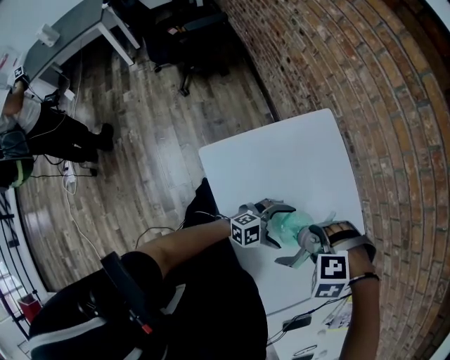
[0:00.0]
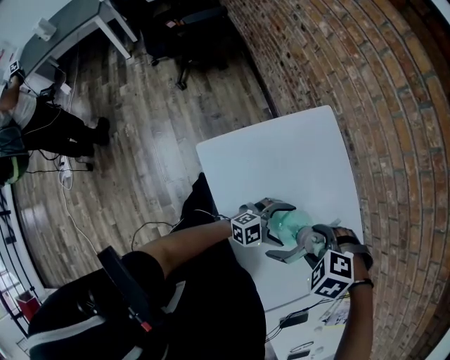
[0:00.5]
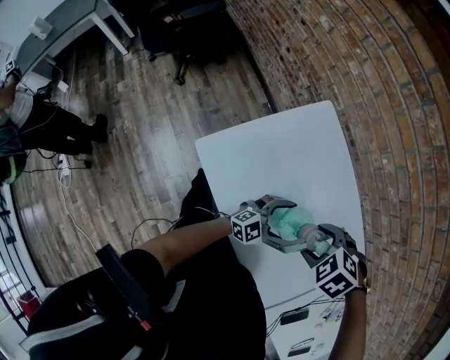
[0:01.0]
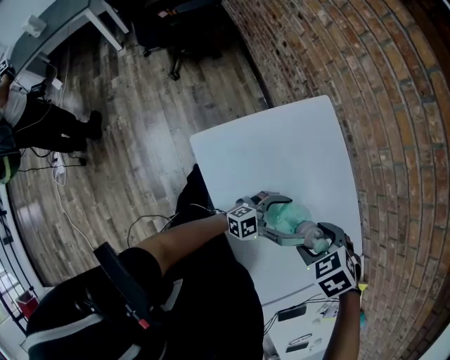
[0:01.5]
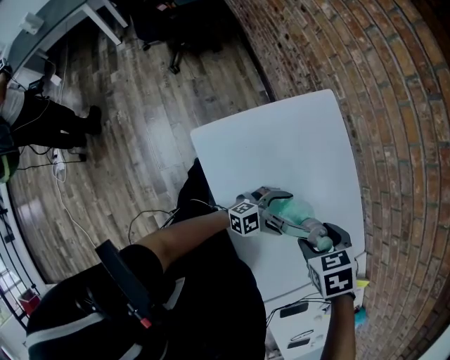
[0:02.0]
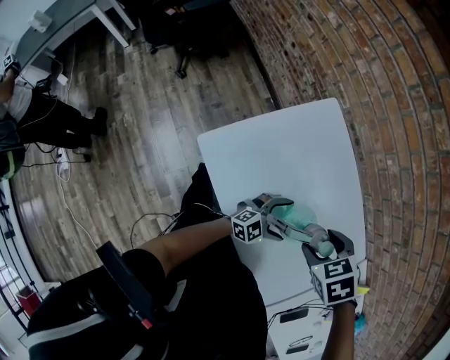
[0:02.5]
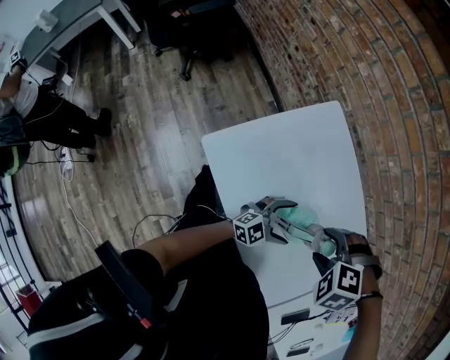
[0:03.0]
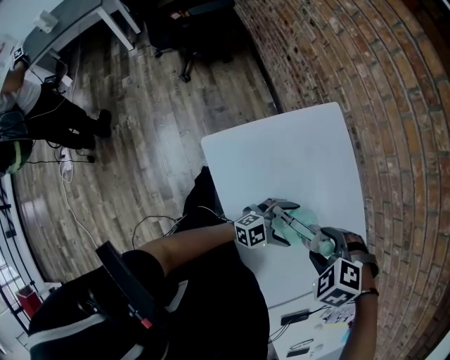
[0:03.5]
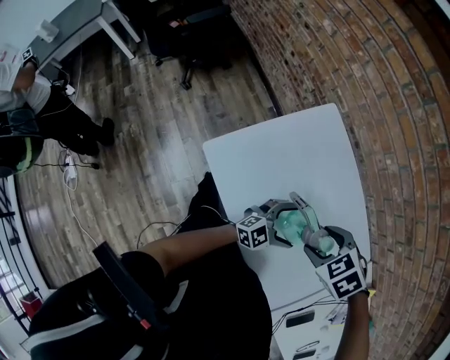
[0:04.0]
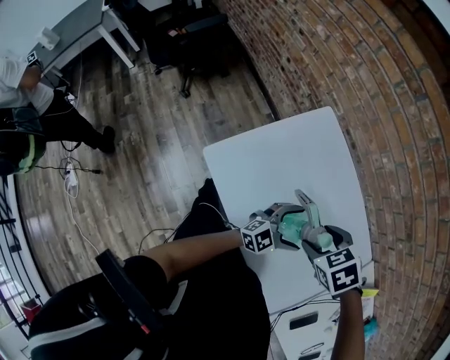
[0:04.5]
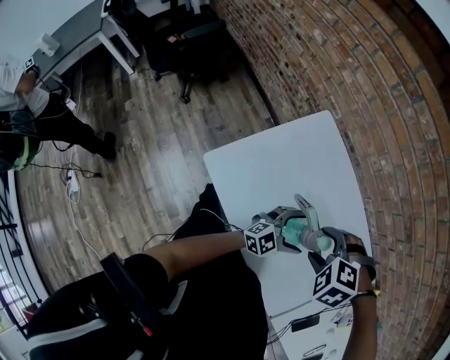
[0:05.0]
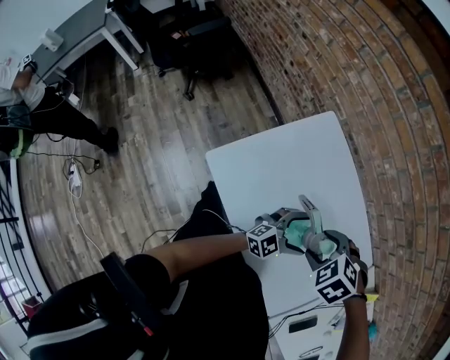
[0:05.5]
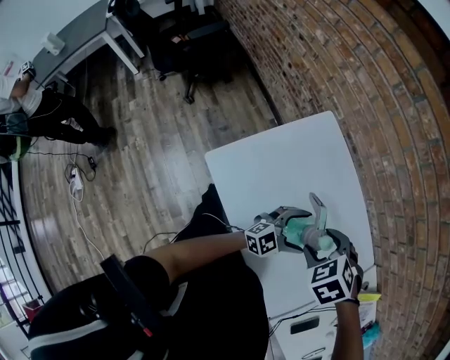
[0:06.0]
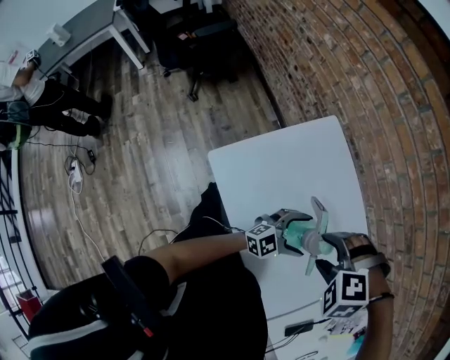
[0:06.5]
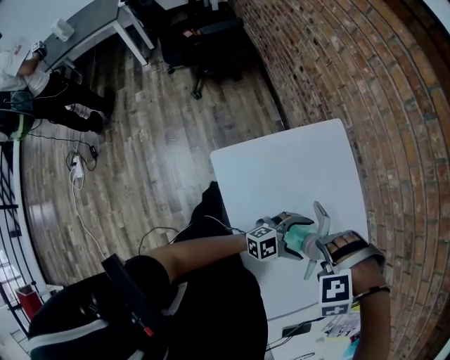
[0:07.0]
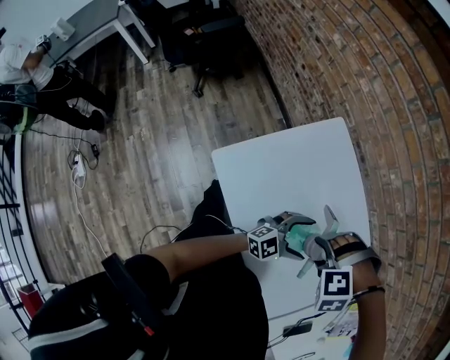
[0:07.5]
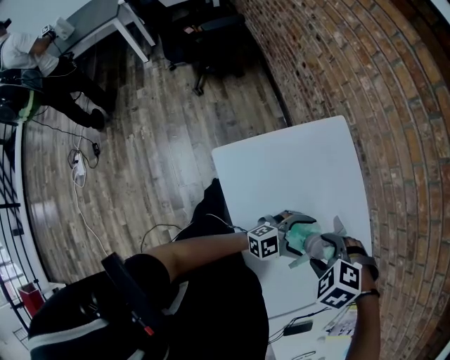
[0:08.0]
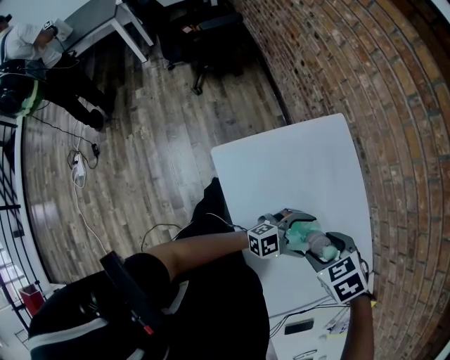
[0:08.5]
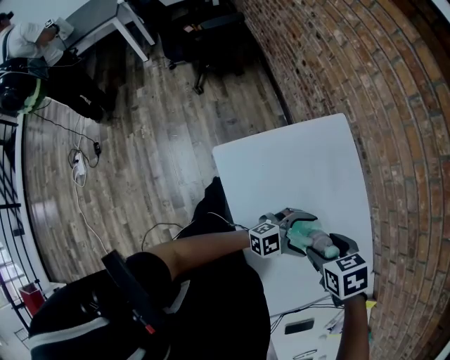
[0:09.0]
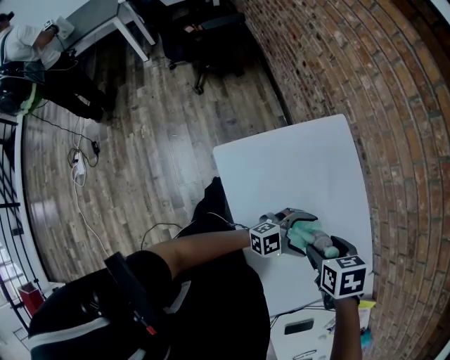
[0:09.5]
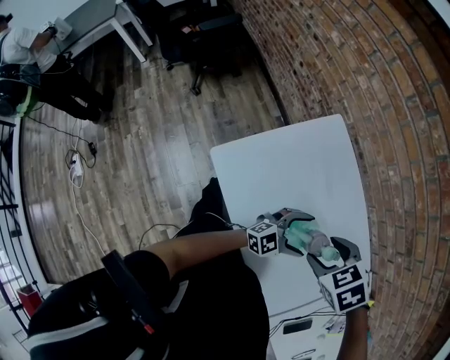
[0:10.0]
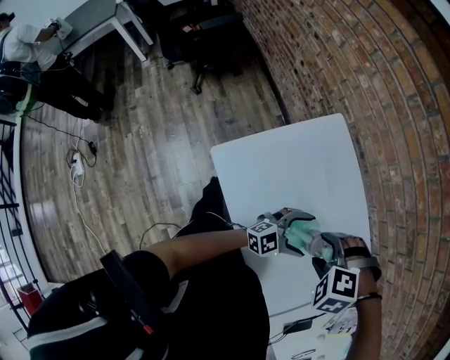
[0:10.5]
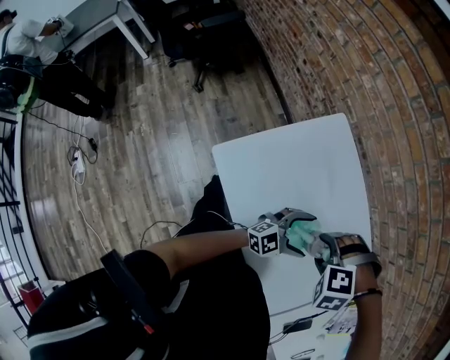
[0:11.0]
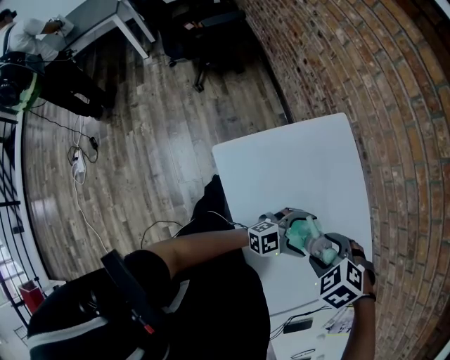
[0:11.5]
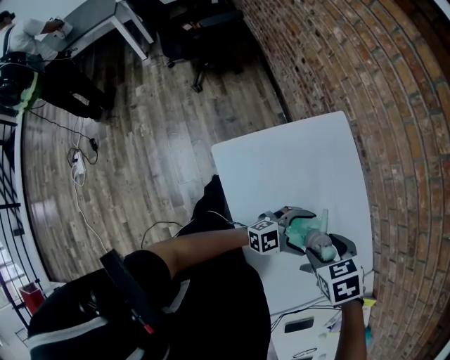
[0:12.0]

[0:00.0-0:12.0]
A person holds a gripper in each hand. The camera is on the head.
0:00.0 to 0:02.0: The right gripper twists approximately 70 degrees clockwise, seen from behind.
0:06.0 to 0:08.0: The right gripper turns by some 40 degrees.
0:08.0 to 0:10.0: The right gripper rotates approximately 40 degrees.

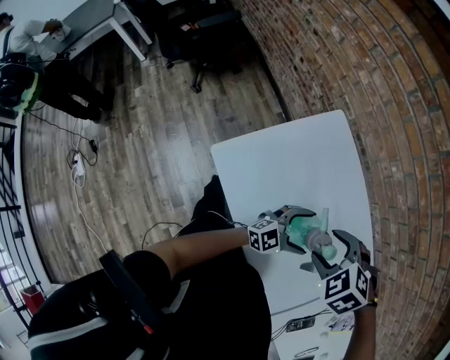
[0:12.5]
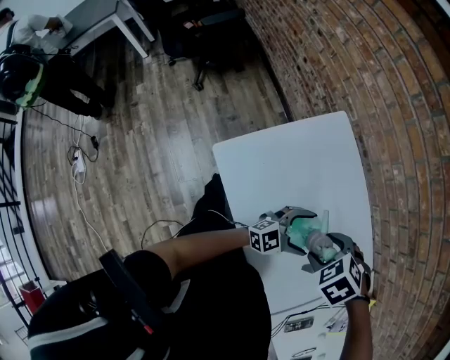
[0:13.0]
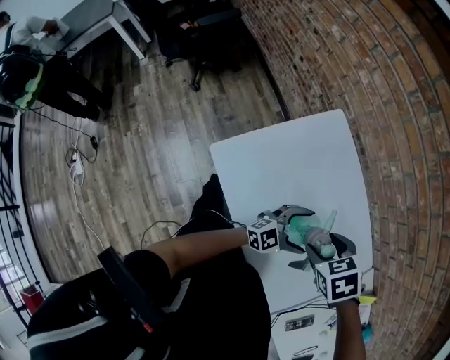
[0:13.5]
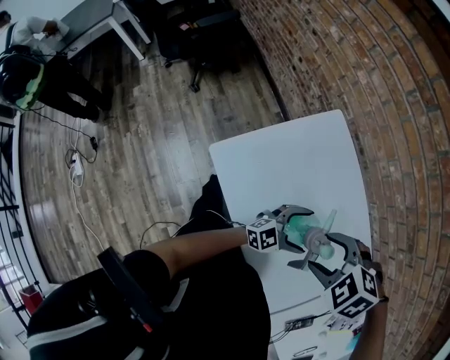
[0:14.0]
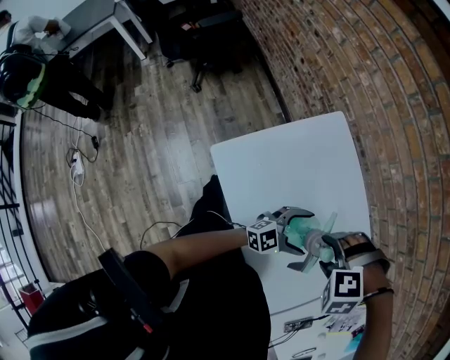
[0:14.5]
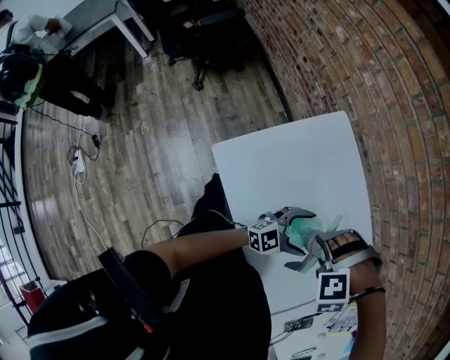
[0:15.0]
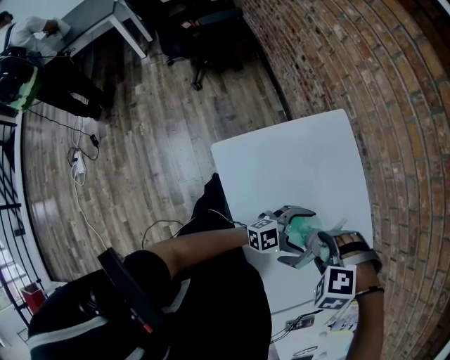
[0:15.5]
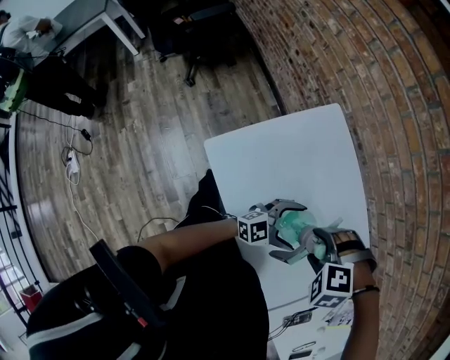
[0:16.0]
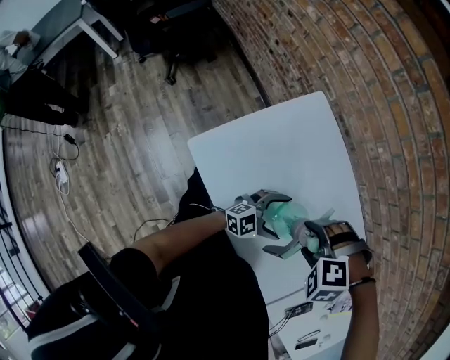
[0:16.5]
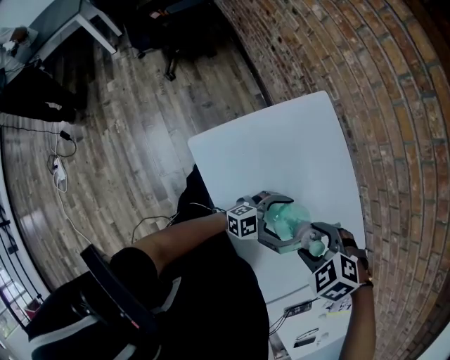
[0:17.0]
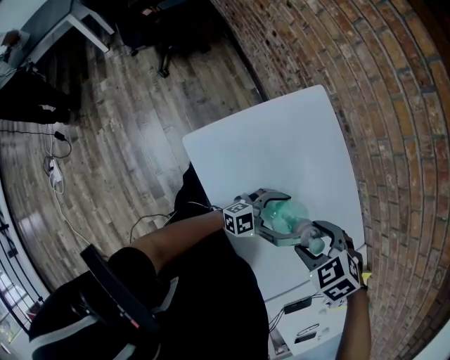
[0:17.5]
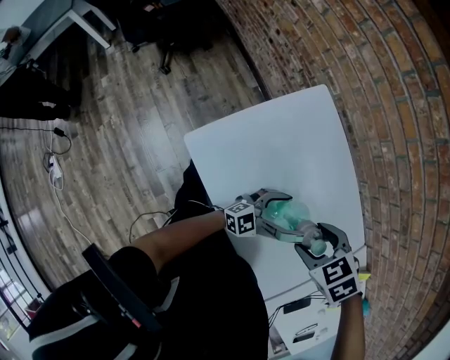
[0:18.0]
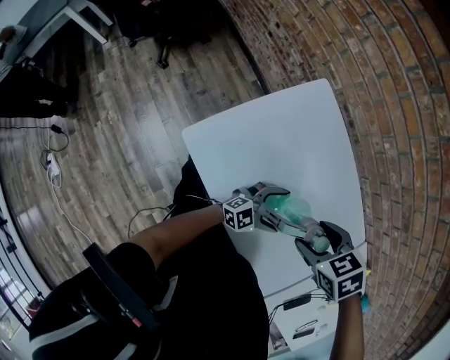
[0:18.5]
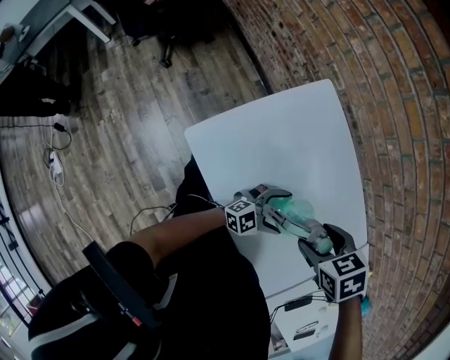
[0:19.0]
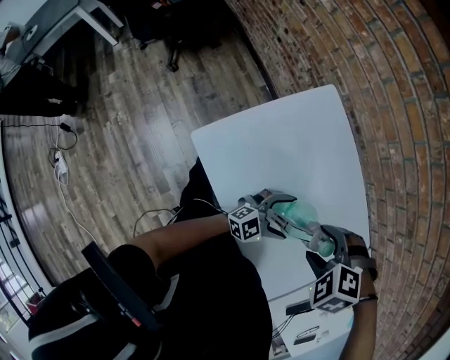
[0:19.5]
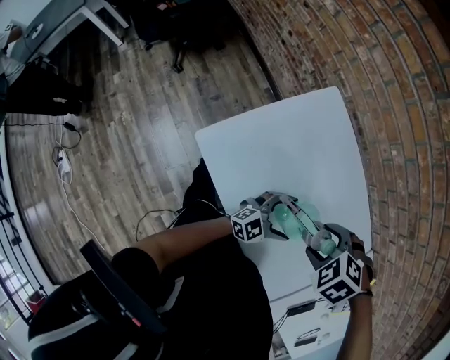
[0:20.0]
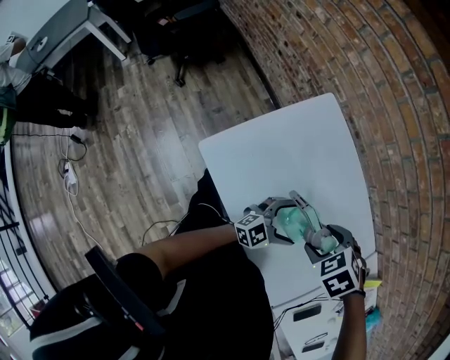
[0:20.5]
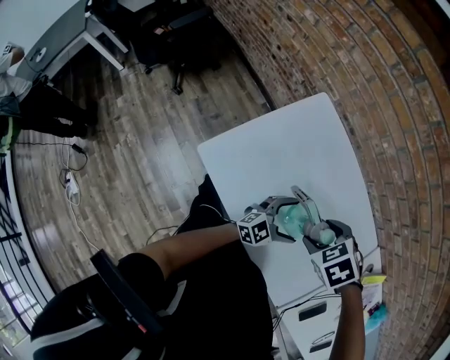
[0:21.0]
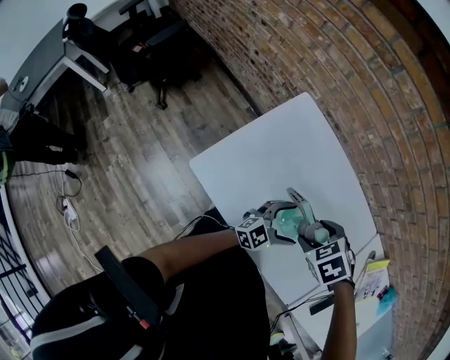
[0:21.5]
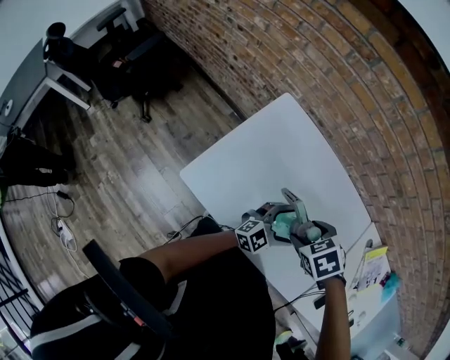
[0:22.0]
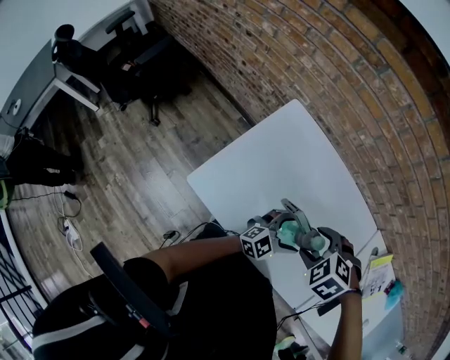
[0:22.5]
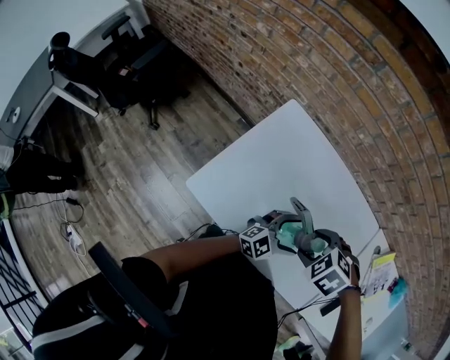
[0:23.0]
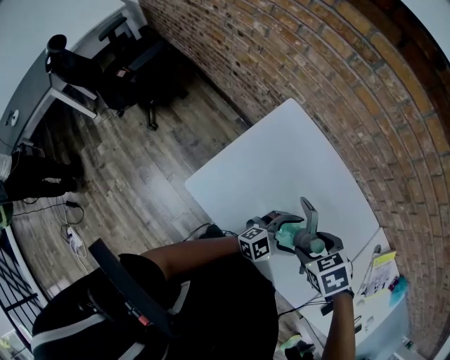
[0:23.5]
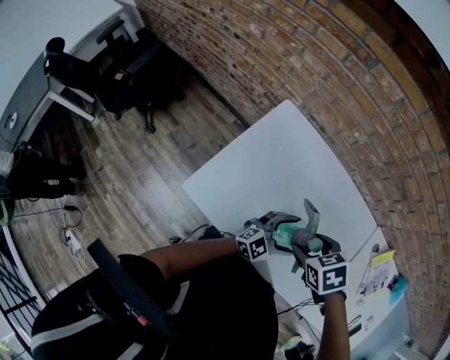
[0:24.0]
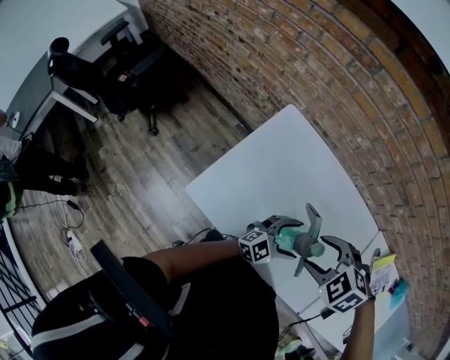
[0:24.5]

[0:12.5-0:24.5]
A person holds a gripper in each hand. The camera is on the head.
0:12.5 to 0:14.5: The right gripper rolls counterclockwise, seen from behind, by roughly 40 degrees.
0:14.5 to 0:16.5: The left gripper shifts roughly 5 cm downward.
0:16.5 to 0:18.5: The right gripper twists approximately 60 degrees clockwise, seen from behind.

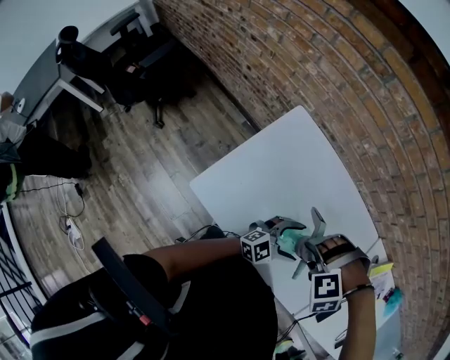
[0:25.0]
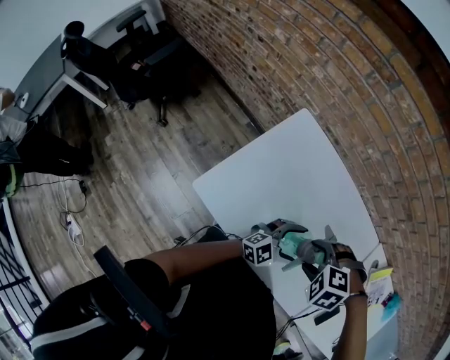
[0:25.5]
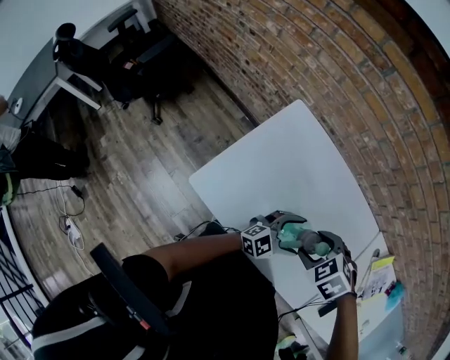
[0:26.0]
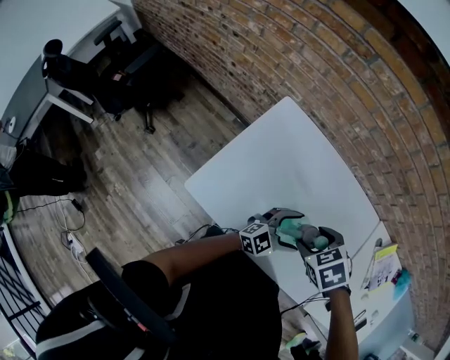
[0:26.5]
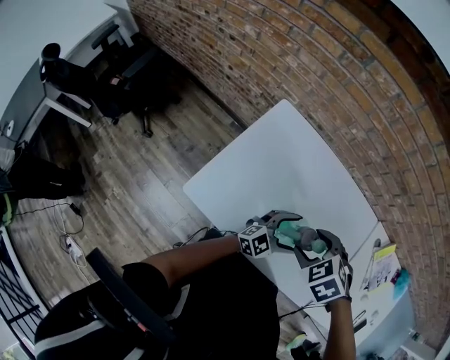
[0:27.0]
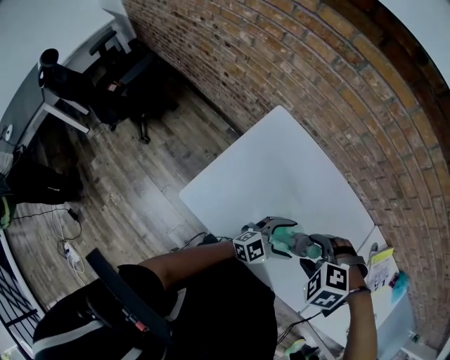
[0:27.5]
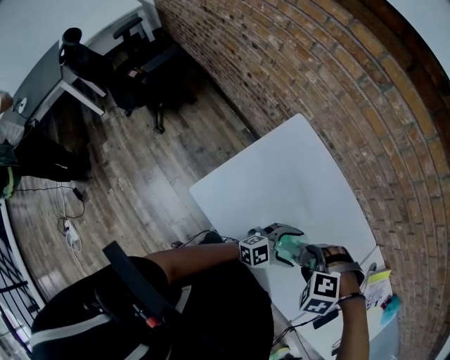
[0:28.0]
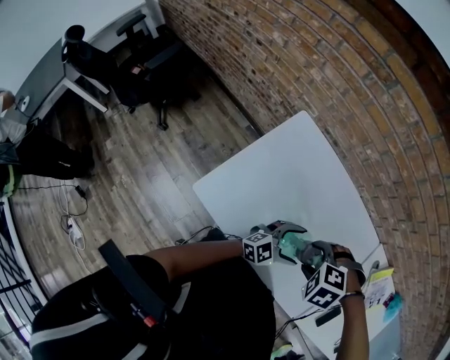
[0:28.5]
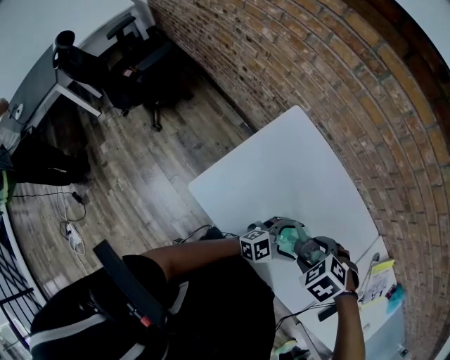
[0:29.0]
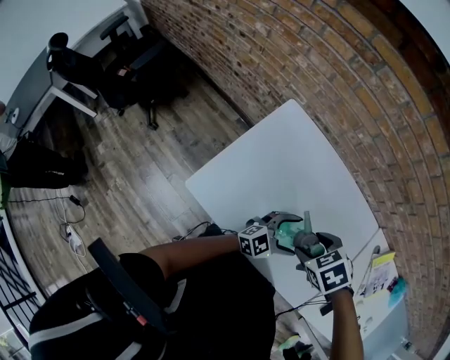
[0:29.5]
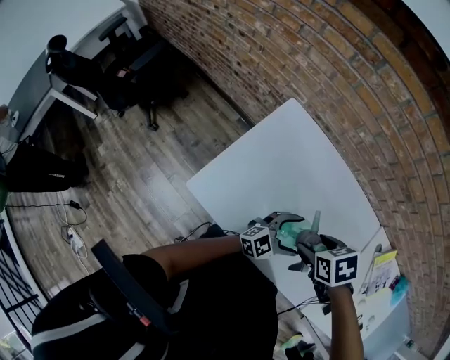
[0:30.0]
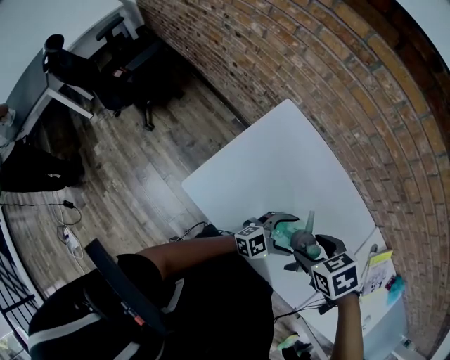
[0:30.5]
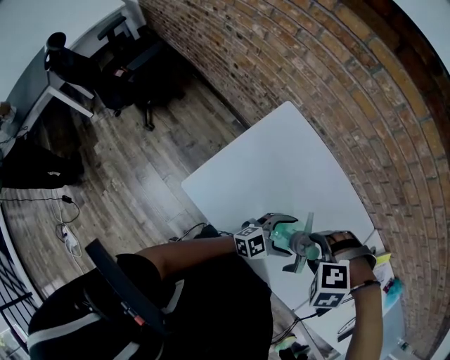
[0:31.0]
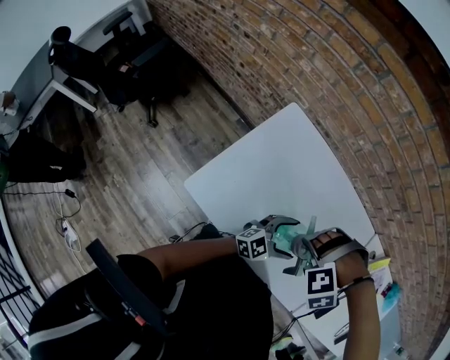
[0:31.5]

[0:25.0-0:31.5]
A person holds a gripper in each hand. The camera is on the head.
0:25.0 to 0:27.0: The right gripper rolls clockwise, seen from behind, by approximately 70 degrees.
0:29.5 to 0:31.5: The right gripper rotates around the line of its fingers by about 80 degrees, counterclockwise from behind.
